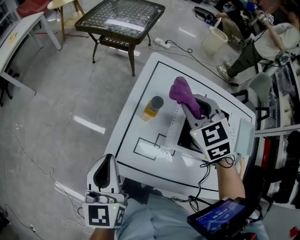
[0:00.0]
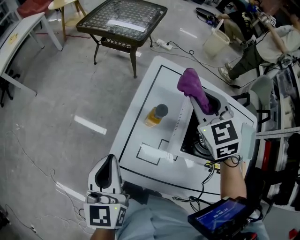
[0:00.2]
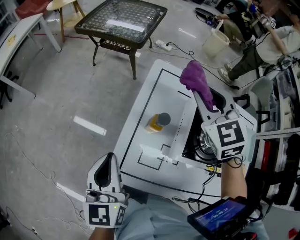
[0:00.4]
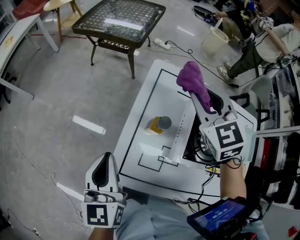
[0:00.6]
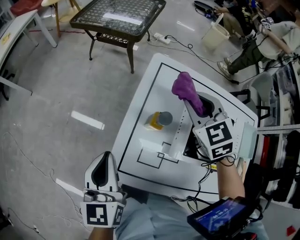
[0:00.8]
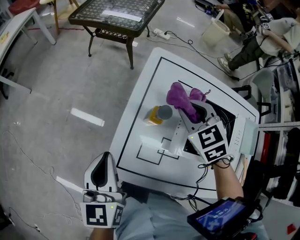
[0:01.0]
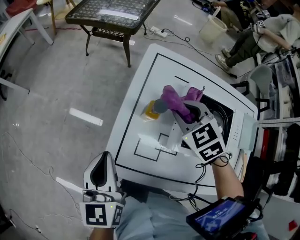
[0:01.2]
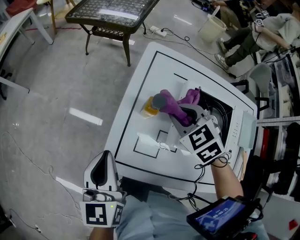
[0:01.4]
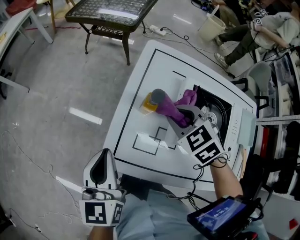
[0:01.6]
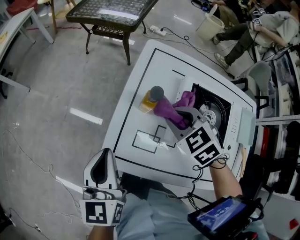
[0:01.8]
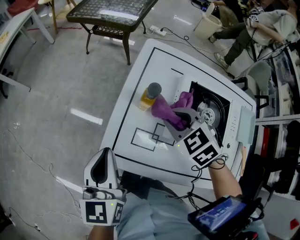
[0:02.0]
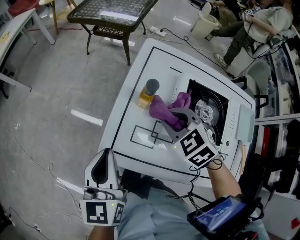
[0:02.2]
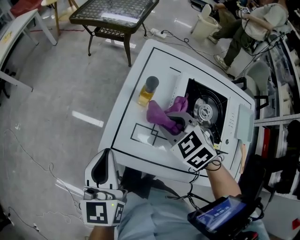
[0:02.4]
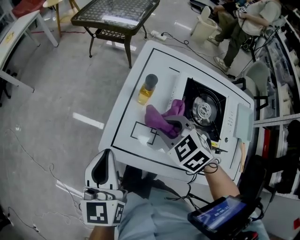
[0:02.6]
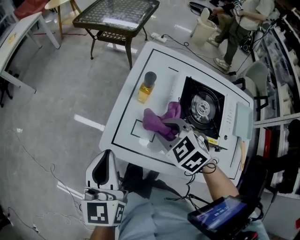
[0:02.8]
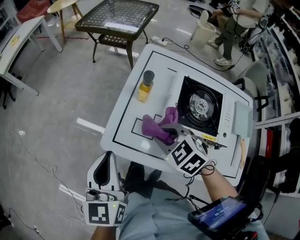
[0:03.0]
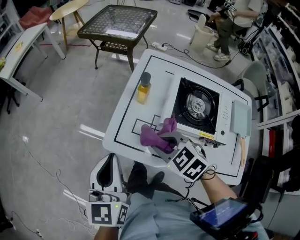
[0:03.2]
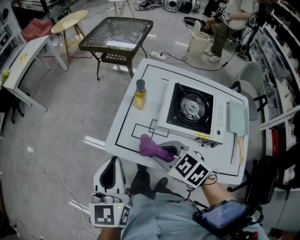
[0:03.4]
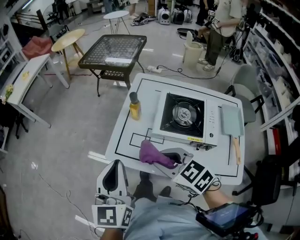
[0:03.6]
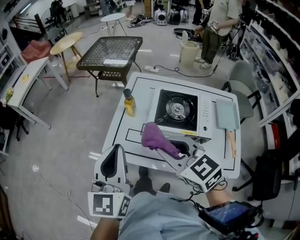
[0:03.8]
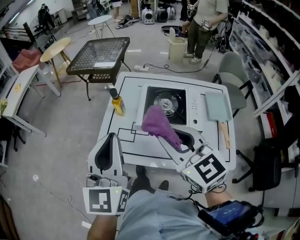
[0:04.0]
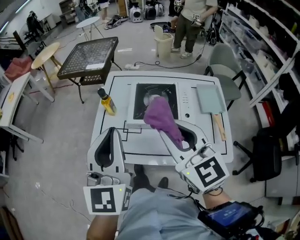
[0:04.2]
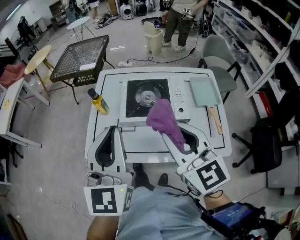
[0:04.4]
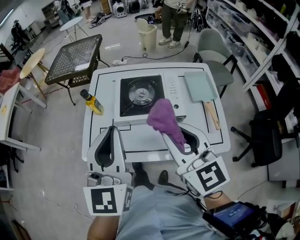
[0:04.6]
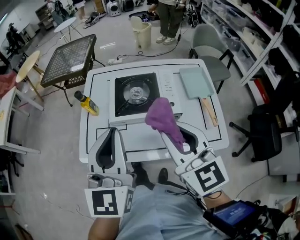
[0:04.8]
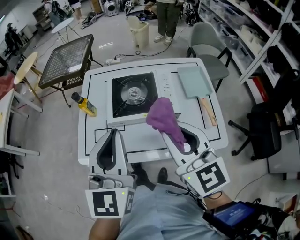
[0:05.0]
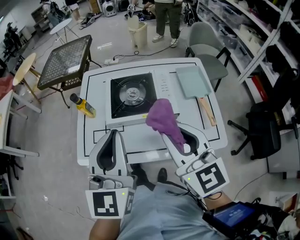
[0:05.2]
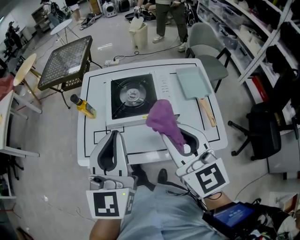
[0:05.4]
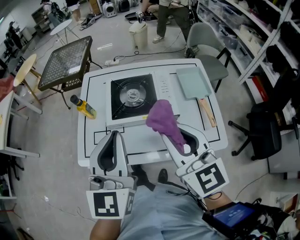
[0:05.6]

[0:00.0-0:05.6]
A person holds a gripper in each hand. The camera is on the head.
0:00.0 to 0:01.4: The right gripper goes approximately 10 cm downward.
0:01.4 to 0:02.8: The right gripper heads backward and to the left, covering about 15 cm. The left gripper heads backward, covering approximately 10 cm.
0:02.8 to 0:04.2: The left gripper changes place by some 25 cm, and turns by approximately 30 degrees. The right gripper ends up approximately 35 cm from where it was, and tilts its fingers some 50 degrees upward.
0:04.2 to 0:05.6: Both grippers move to the right, approximately 10 cm.

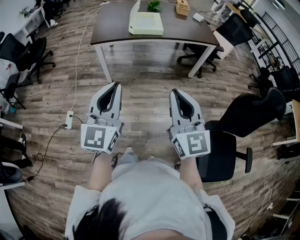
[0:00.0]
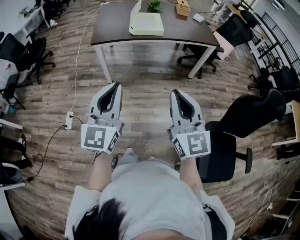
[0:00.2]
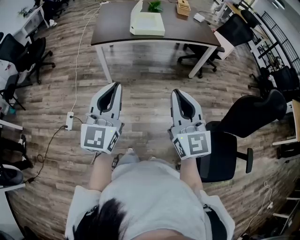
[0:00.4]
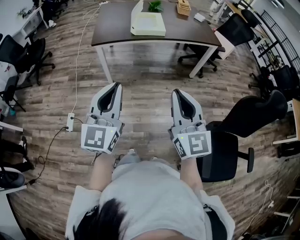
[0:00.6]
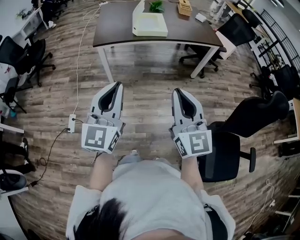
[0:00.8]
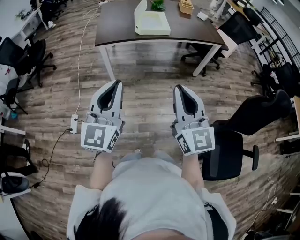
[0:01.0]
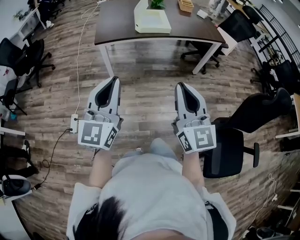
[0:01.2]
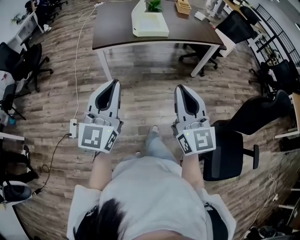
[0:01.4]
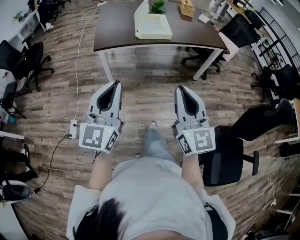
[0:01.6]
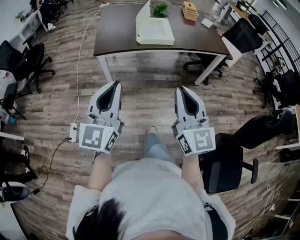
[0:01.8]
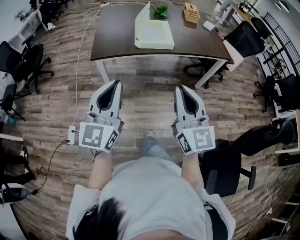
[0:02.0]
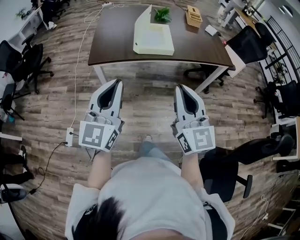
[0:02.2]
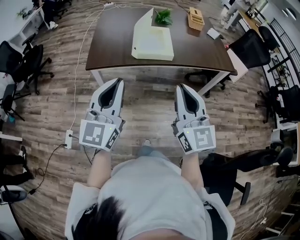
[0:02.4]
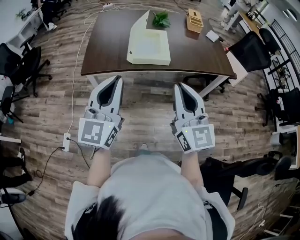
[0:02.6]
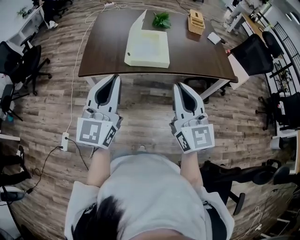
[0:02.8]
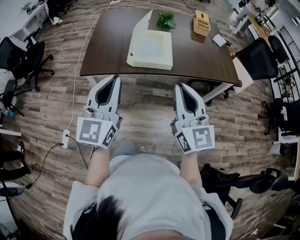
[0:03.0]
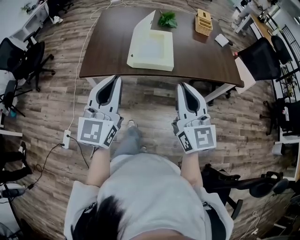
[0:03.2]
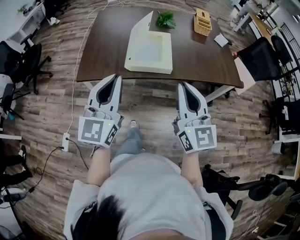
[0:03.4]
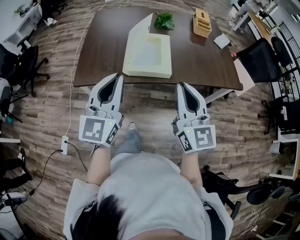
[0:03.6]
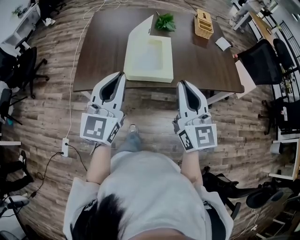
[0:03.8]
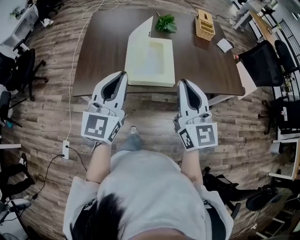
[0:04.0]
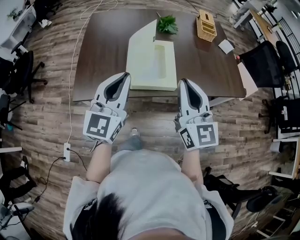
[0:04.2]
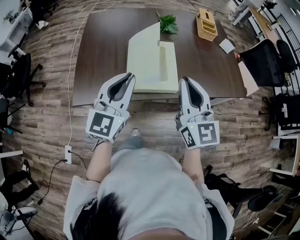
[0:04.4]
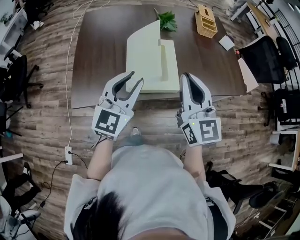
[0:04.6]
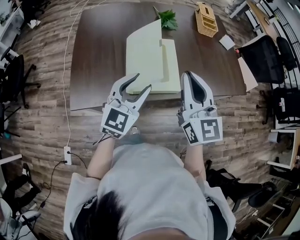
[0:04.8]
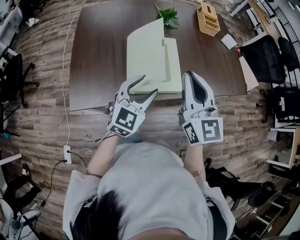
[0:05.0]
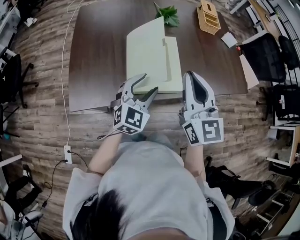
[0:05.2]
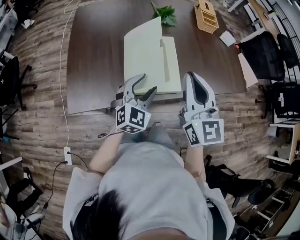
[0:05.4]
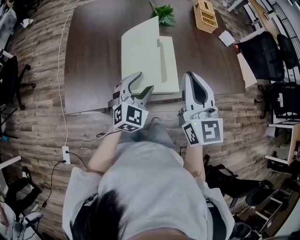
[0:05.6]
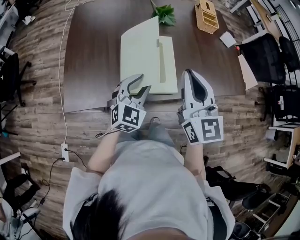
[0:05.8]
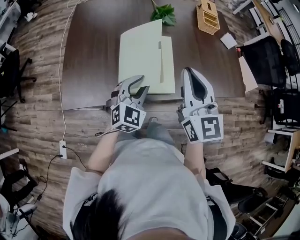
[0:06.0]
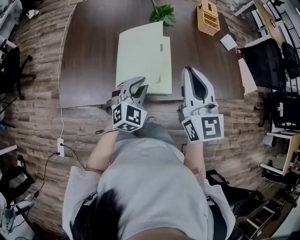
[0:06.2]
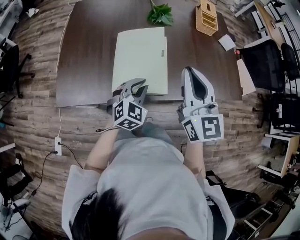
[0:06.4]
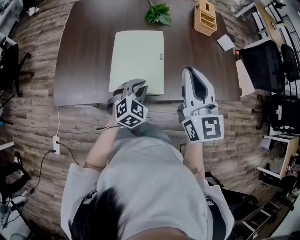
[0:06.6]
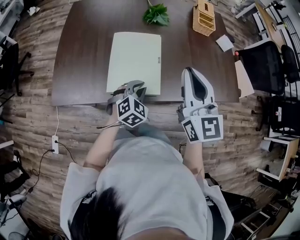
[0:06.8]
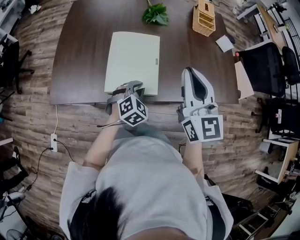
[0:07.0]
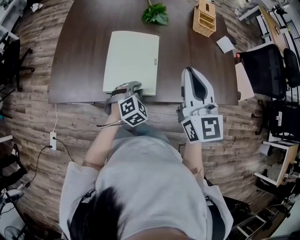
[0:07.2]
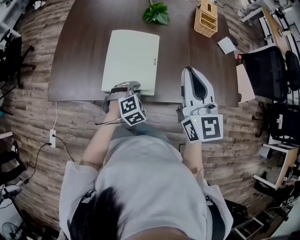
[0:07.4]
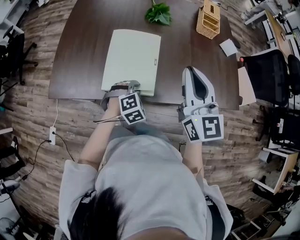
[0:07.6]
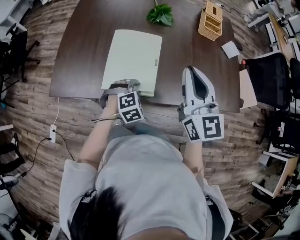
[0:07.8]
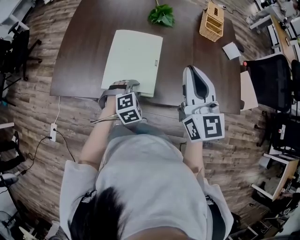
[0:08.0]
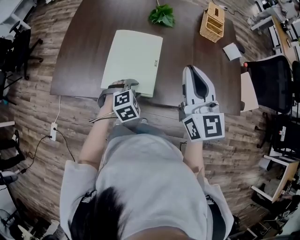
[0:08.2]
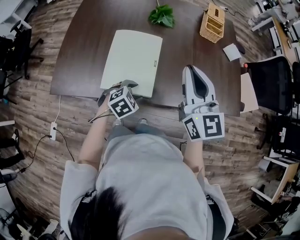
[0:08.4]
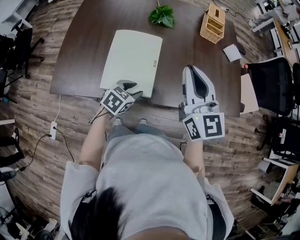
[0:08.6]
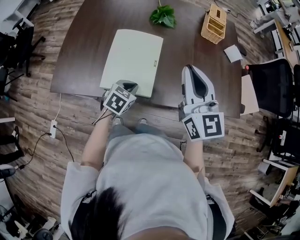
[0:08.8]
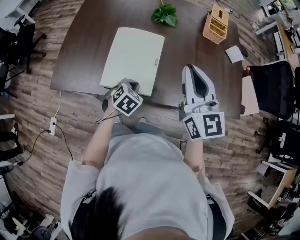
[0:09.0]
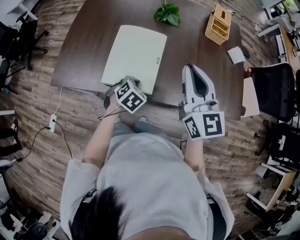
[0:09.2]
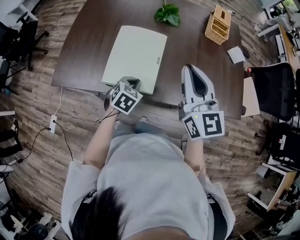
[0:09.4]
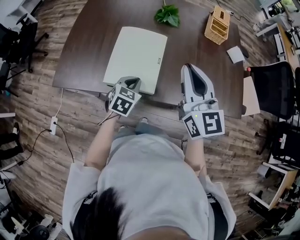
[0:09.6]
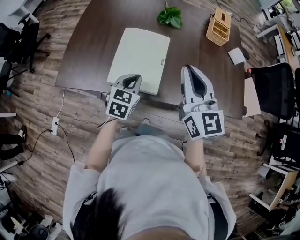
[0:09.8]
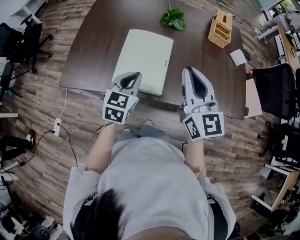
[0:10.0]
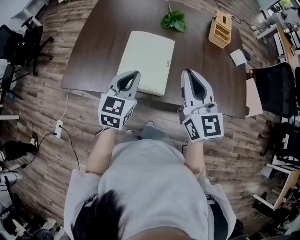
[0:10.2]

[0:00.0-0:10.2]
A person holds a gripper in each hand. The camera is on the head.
0:00.0 to 0:01.4: The right gripper travels forward and to the left by some 10 cm. The left gripper travels to the left and forward by approximately 10 cm.
0:01.4 to 0:03.0: Both grippers move forward, roughly 35 cm.
0:03.0 to 0:04.4: The grippers both shift forward by about 25 cm.
0:04.4 to 0:05.8: The left gripper heads downward and forward, covering some 15 cm, changes its angle by some 20 degrees, and opens up; the right gripper travels forward by about 10 cm.
0:05.8 to 0:07.2: The left gripper moves downward and to the right, approximately 15 cm, changes its angle by about 30 degrees, and closes up; the right gripper is displaced to the right by about 10 cm.
0:07.2 to 0:08.8: The left gripper swivels about 30 degrees, and opens, then closes once more.
0:08.8 to 0:10.2: The left gripper goes approximately 15 cm upward, and angles its fingers upward, by approximately 30 degrees, while the right gripper moves to the left, some 5 cm.

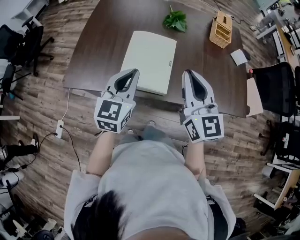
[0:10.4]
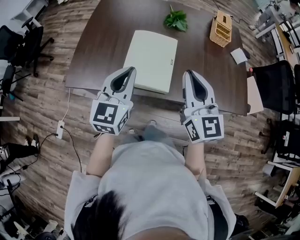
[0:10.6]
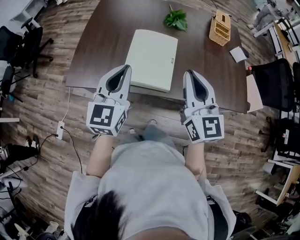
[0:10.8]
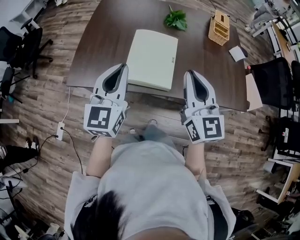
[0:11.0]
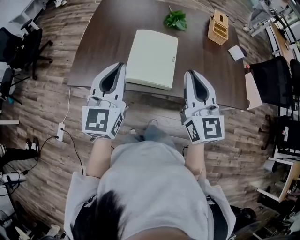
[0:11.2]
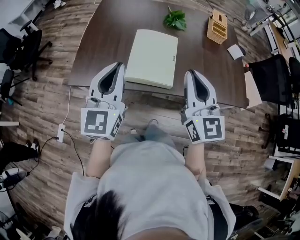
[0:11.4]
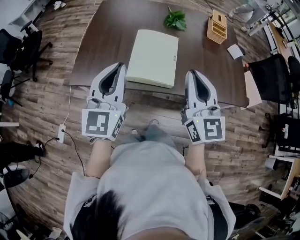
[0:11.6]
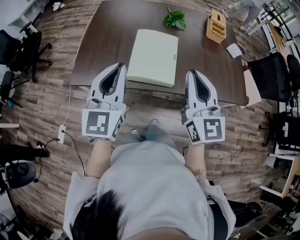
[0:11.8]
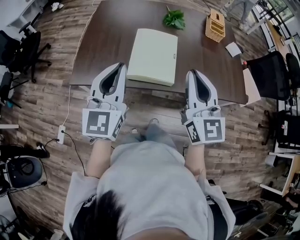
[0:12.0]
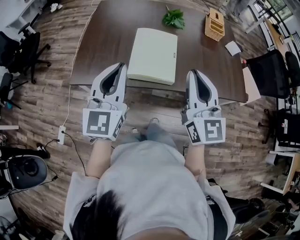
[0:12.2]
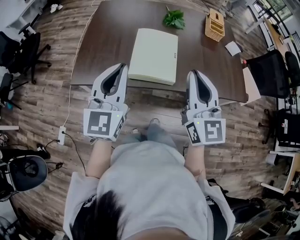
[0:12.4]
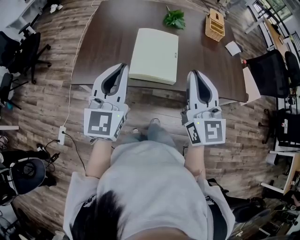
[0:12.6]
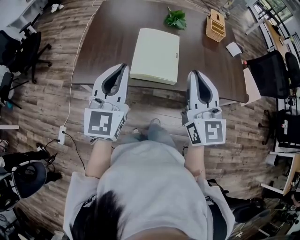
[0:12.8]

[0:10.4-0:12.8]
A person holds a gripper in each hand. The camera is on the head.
0:10.4 to 0:11.6: The left gripper goes roughly 15 cm upward, to the left and backward. The right gripper is displaced backward by some 5 cm.
0:11.6 to 0:12.8: The grippers make only small movements.

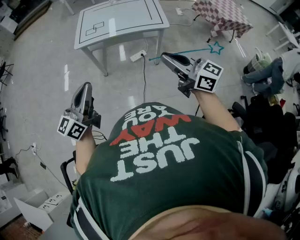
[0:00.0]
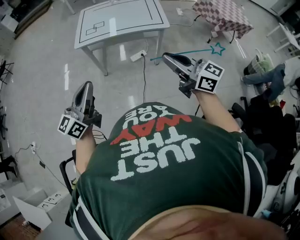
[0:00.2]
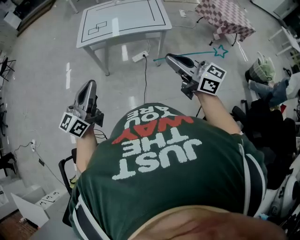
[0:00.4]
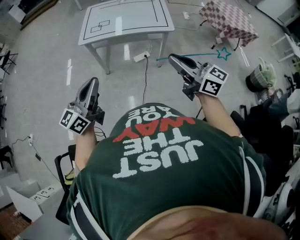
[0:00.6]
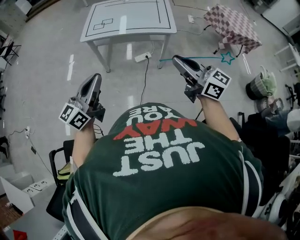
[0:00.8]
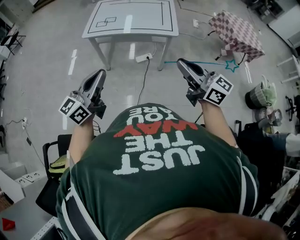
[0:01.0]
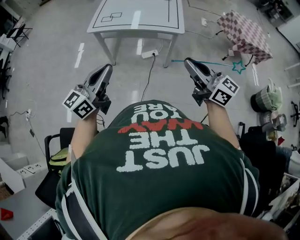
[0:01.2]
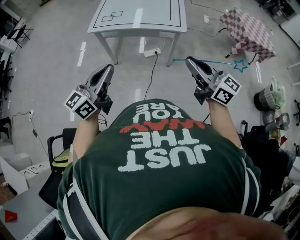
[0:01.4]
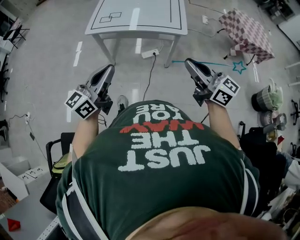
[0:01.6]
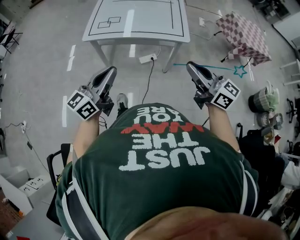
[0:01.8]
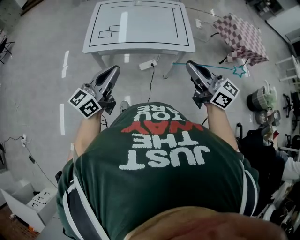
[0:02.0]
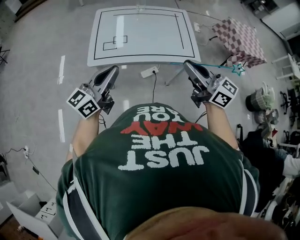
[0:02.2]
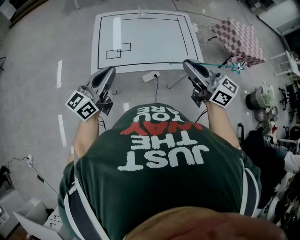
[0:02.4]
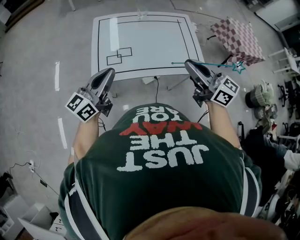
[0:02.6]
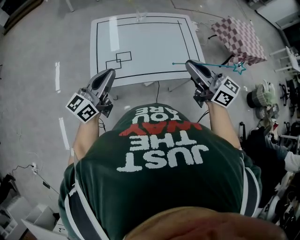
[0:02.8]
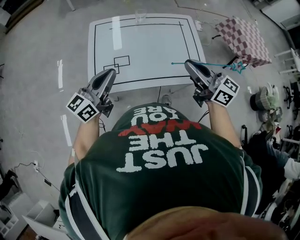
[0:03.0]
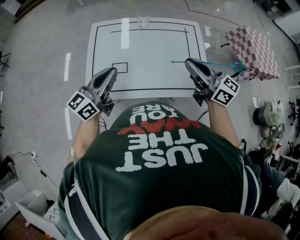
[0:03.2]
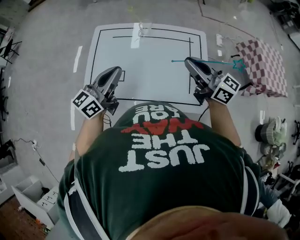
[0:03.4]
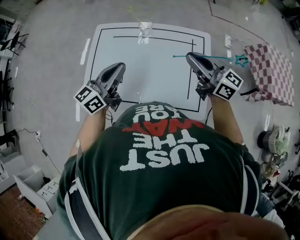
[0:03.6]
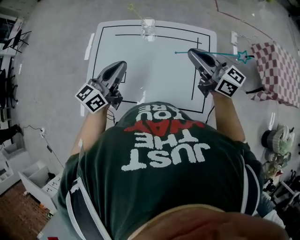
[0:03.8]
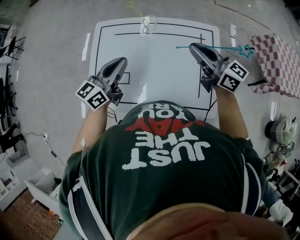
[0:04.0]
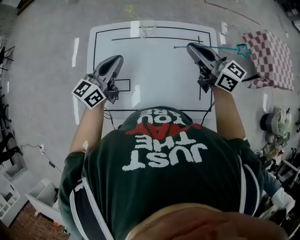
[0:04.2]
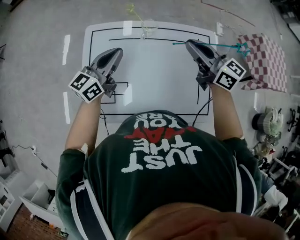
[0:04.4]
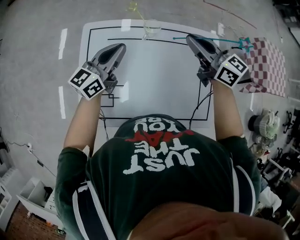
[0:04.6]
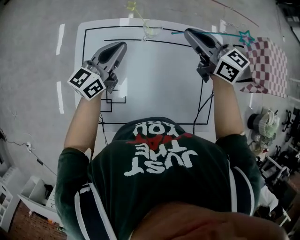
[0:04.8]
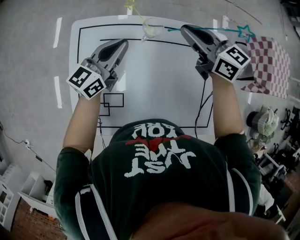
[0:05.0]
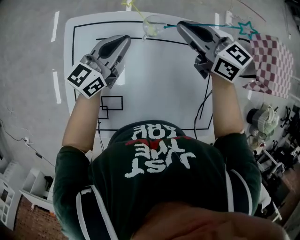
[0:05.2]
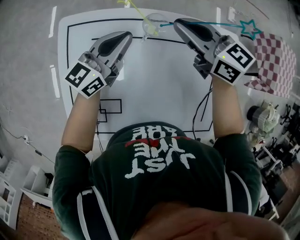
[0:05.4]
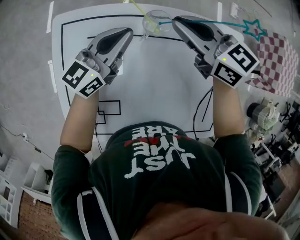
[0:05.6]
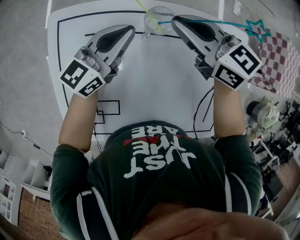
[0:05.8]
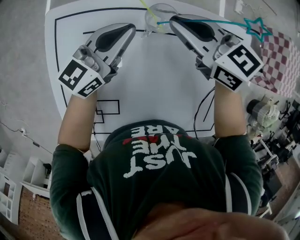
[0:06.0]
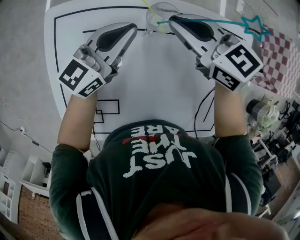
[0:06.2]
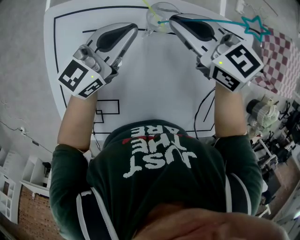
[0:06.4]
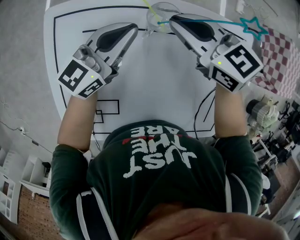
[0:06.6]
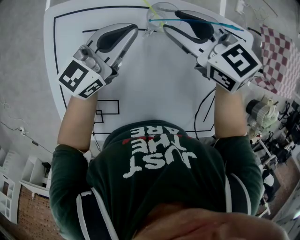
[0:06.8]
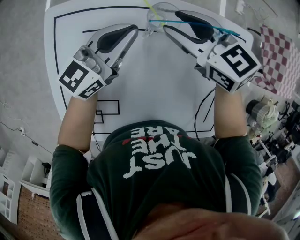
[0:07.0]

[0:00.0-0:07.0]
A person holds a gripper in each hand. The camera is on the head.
0:00.0 to 0:01.4: Both grippers travel together to the right, some 15 cm.
0:01.4 to 0:02.8: The pair of grippers is taken forward and to the left, approximately 50 cm.
0:02.8 to 0:04.2: The grippers both shift forward and to the right by some 40 cm.
0:04.2 to 0:05.6: The grippers both shift forward and downward by approximately 25 cm. The right gripper changes its angle by roughly 20 degrees.
0:05.6 to 0:07.0: The right gripper is displaced downward by approximately 5 cm, and opens.
